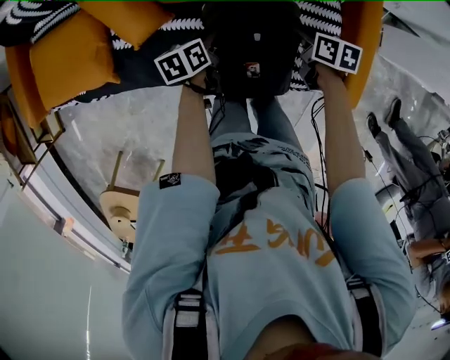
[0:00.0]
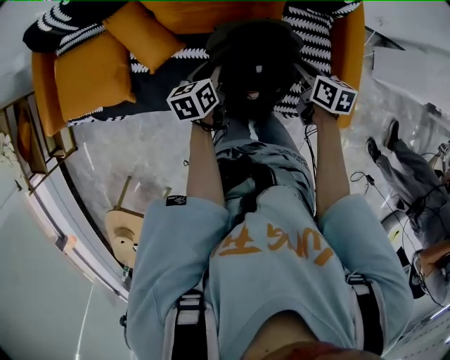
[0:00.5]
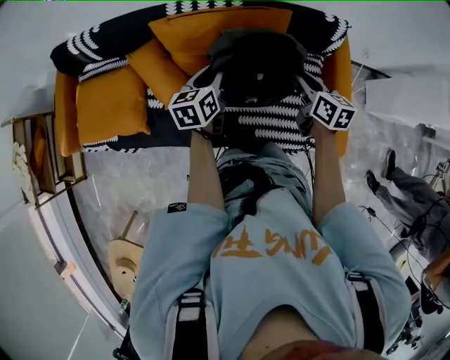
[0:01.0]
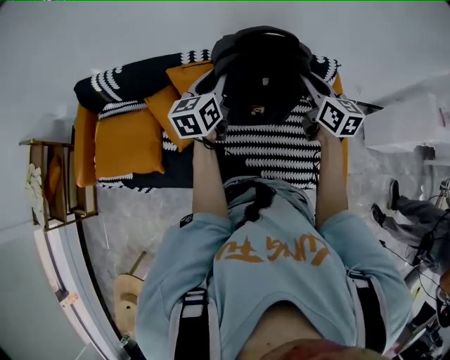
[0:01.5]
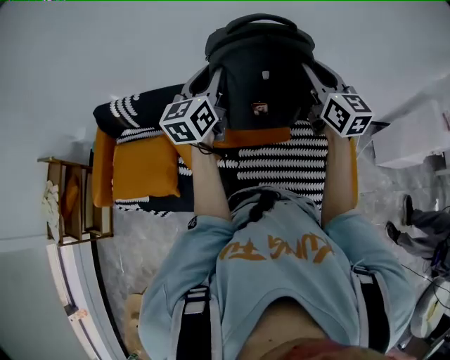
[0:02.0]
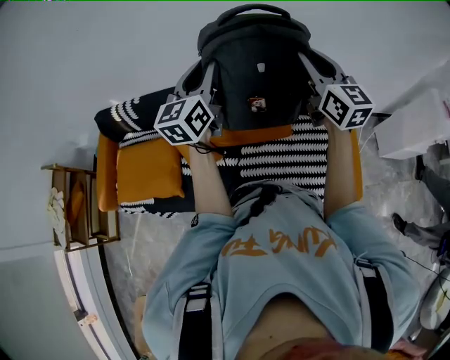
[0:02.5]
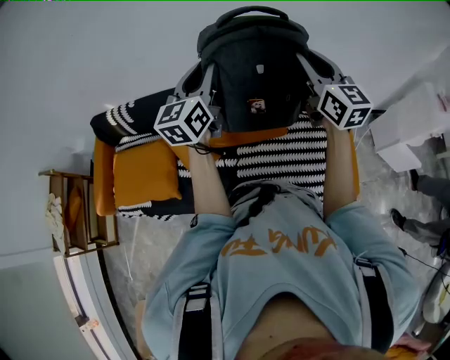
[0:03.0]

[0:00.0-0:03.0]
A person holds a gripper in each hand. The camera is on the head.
0:00.0 to 0:01.5: Both grippers move upward, some 35 cm. The left gripper points its fingers approximately 30 degrees further upward, while the right gripper tilts its fingers about 40 degrees upward.
0:01.5 to 0:03.0: The two grippers go roughly 15 cm upward. The right gripper changes its angle by some 20 degrees.

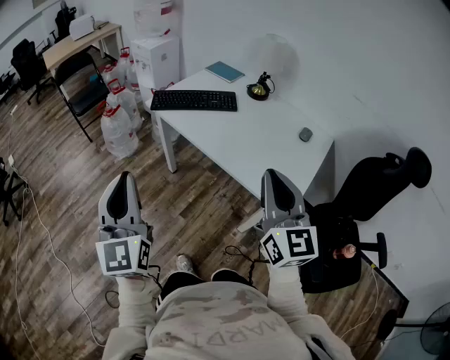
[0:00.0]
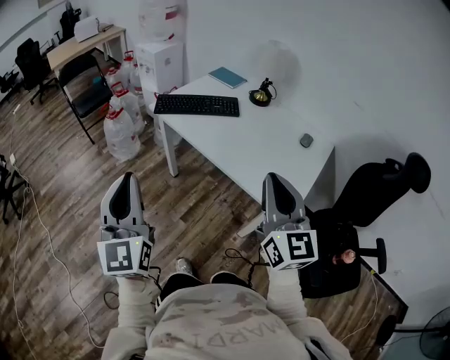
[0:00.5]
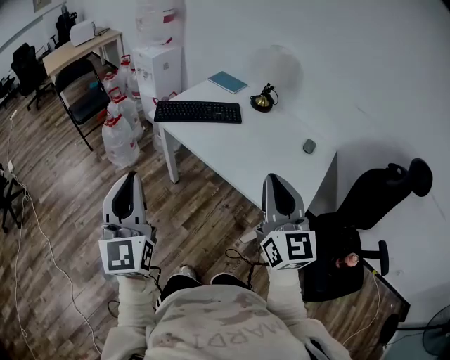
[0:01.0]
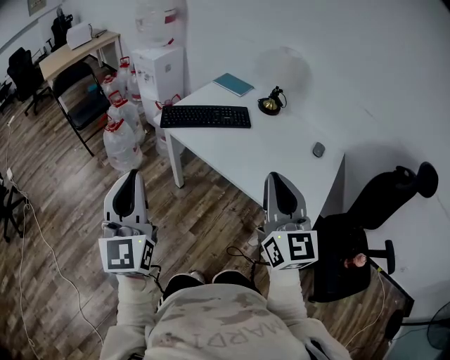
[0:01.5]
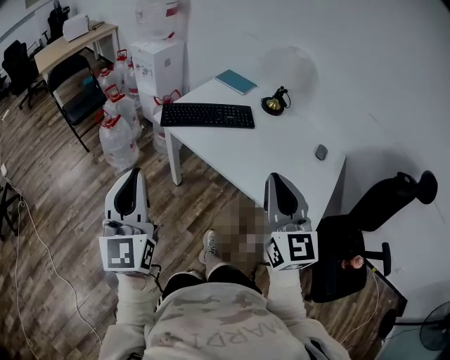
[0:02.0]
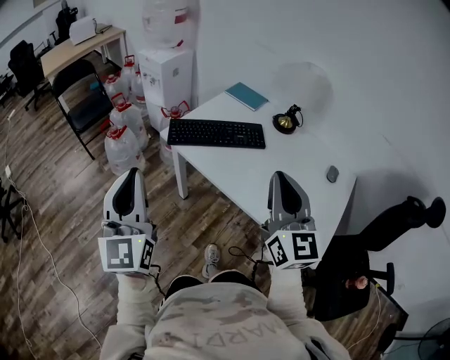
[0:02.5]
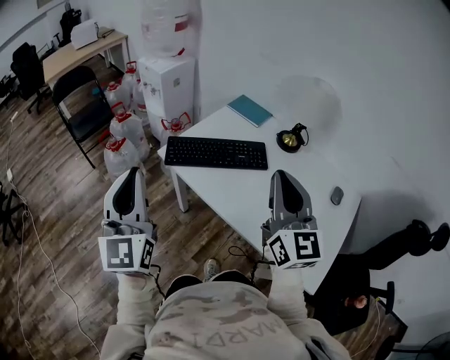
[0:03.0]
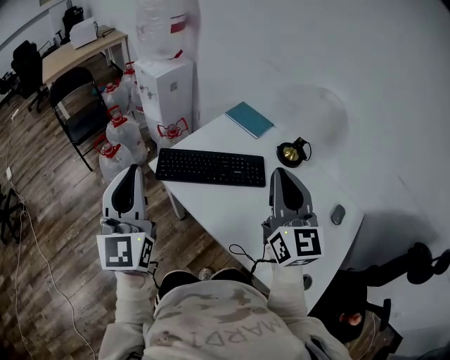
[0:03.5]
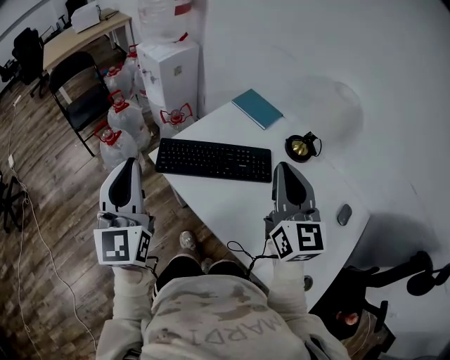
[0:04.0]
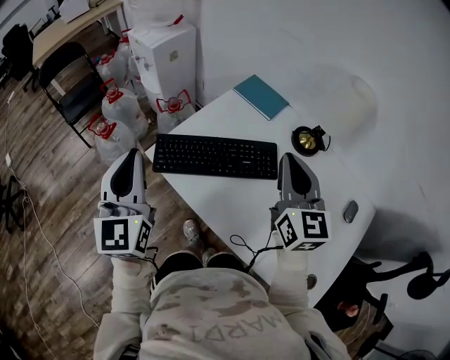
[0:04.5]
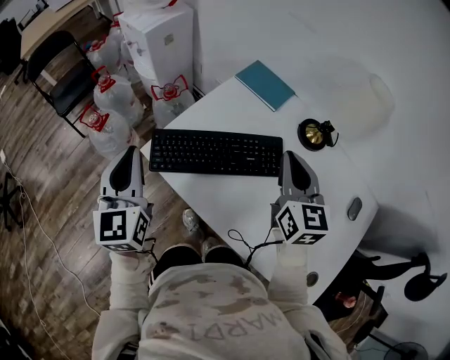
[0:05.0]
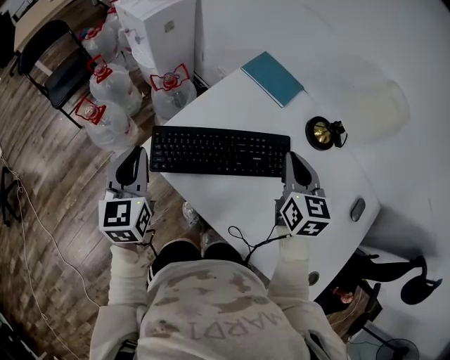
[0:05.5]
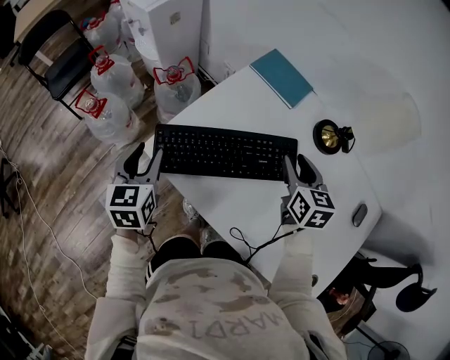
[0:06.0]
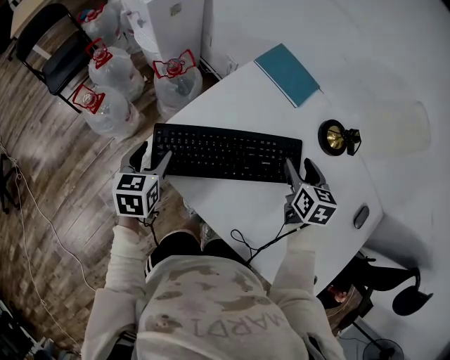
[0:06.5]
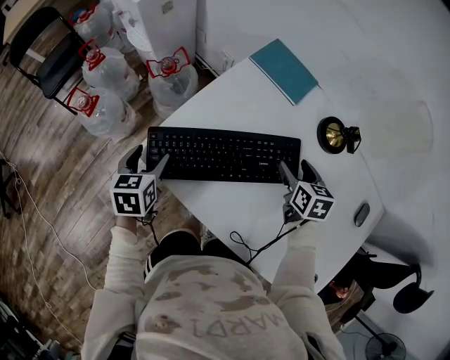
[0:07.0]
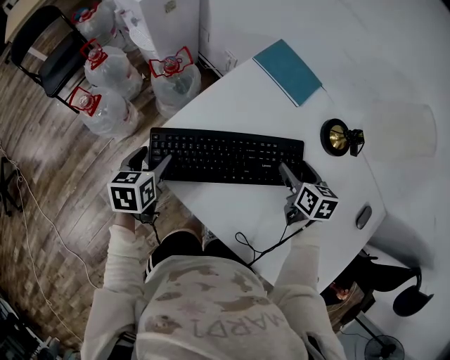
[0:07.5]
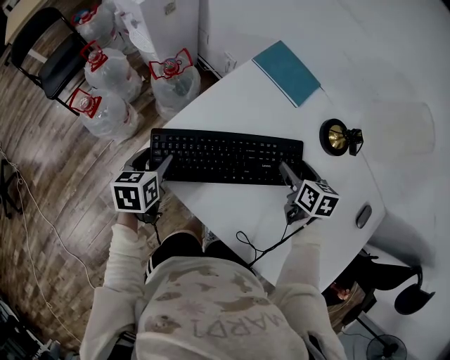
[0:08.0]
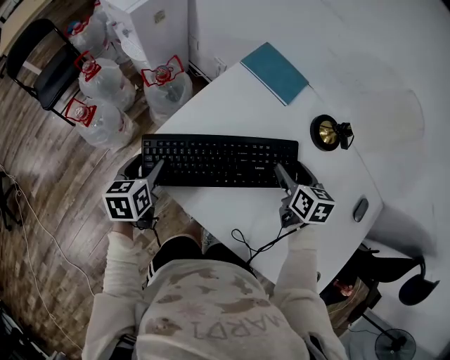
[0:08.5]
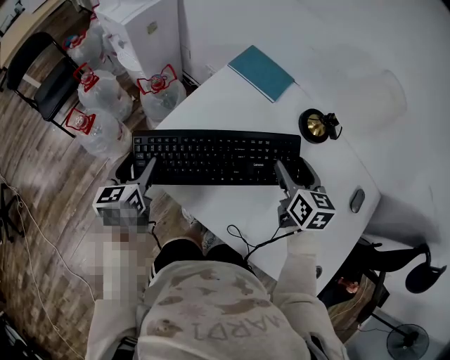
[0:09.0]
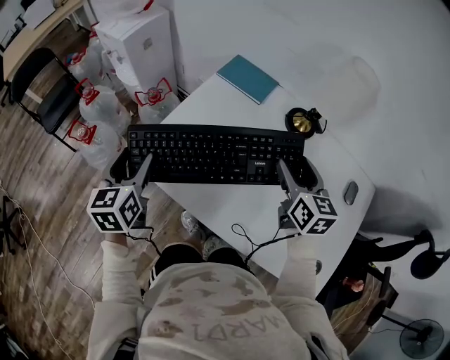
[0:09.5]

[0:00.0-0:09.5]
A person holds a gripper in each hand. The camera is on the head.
0:00.0 to 0:02.0: The two grippers go roughly 15 cm forward and to the left.
0:02.0 to 0:04.0: Both grippers travel together forward, some 35 cm.
0:04.0 to 0:05.5: The grippers both shift downward and forward by some 25 cm. The left gripper rotates about 30 degrees. Meanwhile the right gripper rotates roughly 30 degrees.
0:05.5 to 0:07.5: Both grippers travel together downward, roughly 15 cm. The right gripper swivels approximately 30 degrees, and opens its fingers, while the left gripper turns by some 30 degrees, and opens.
0:07.5 to 0:09.5: The left gripper is displaced upward by some 15 cm, and changes its angle by roughly 20 degrees. Meanwhile the right gripper travels upward and backward by about 20 cm, and swivels about 30 degrees.

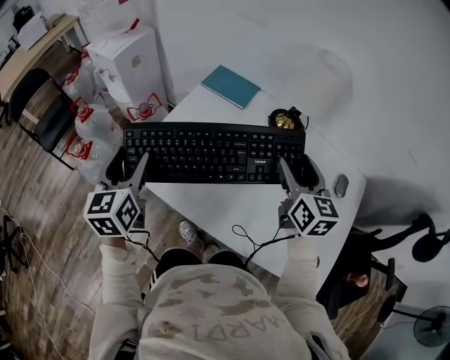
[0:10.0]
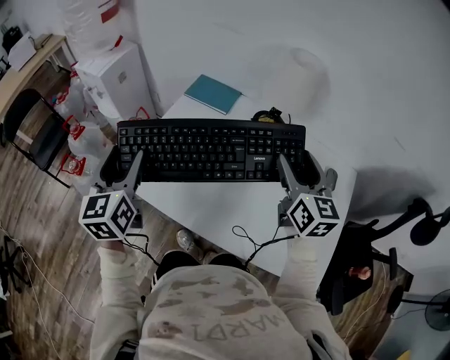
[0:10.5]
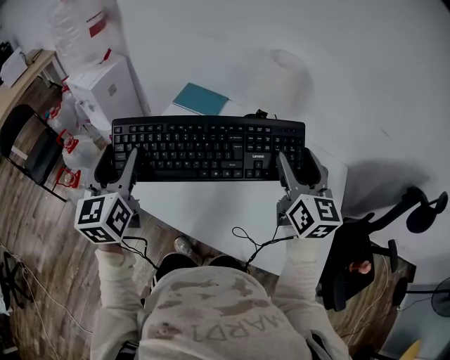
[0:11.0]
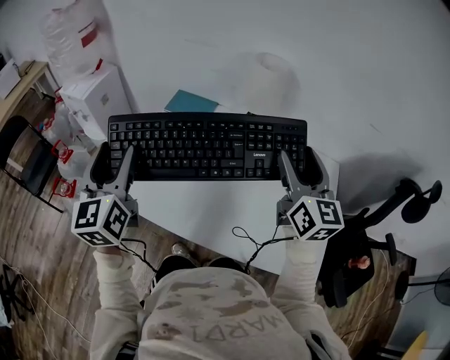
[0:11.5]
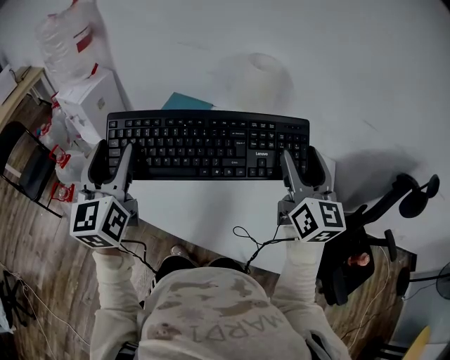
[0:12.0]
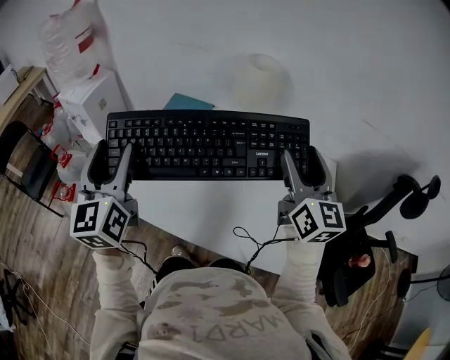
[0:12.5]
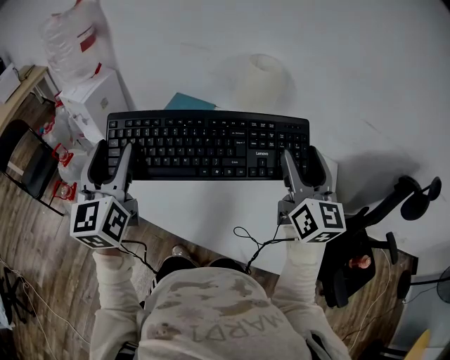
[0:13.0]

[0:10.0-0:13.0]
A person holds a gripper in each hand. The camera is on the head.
0:10.0 to 0:11.5: The left gripper goes roughly 15 cm upward and to the right, while the right gripper goes roughly 15 cm upward, to the right and backward, and turns by about 20 degrees.
0:11.5 to 0:13.0: The grippers stay close to where they were, moving slightly.

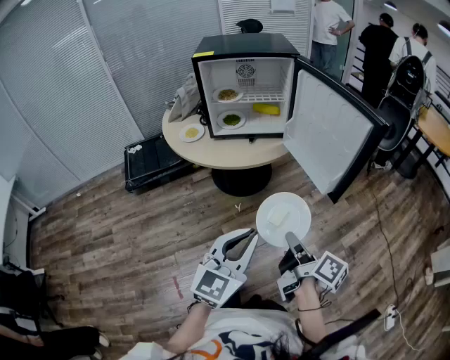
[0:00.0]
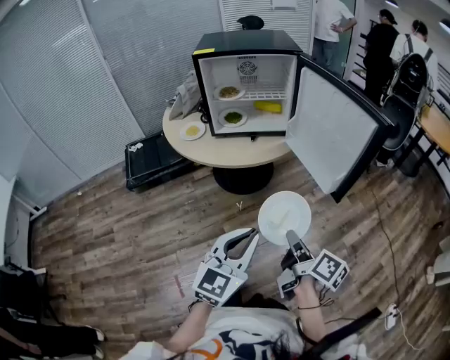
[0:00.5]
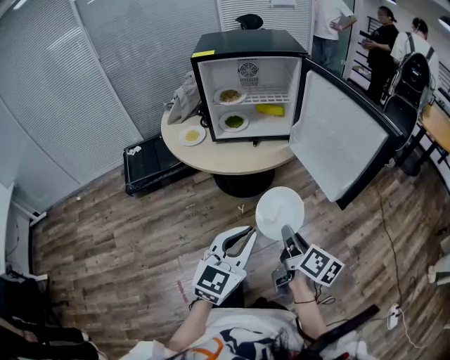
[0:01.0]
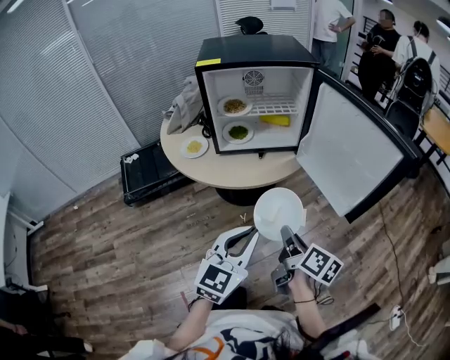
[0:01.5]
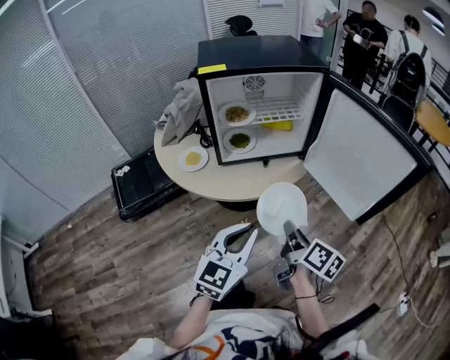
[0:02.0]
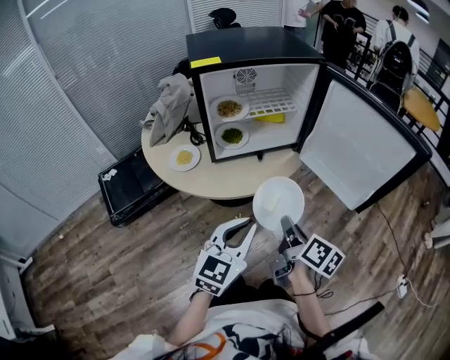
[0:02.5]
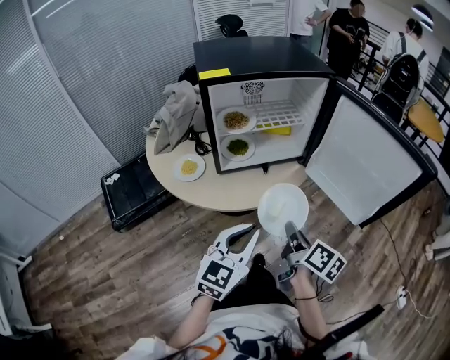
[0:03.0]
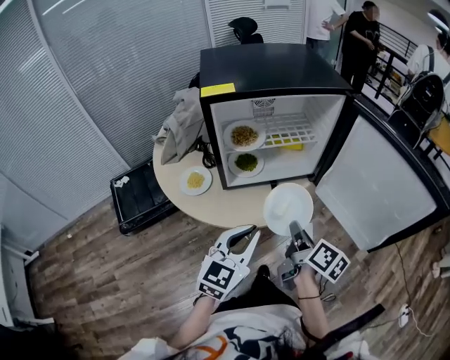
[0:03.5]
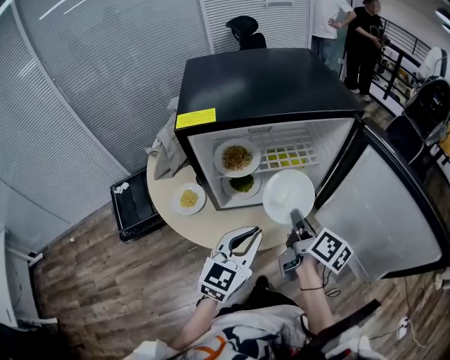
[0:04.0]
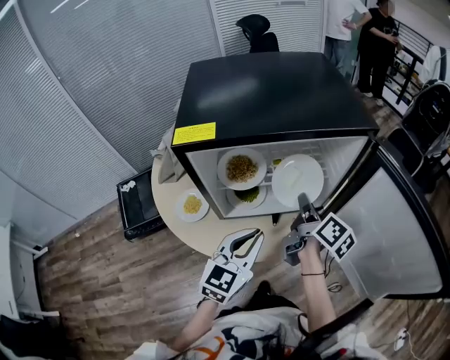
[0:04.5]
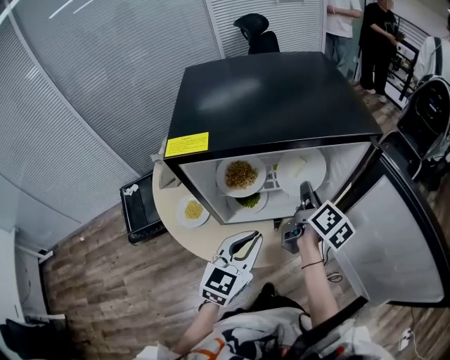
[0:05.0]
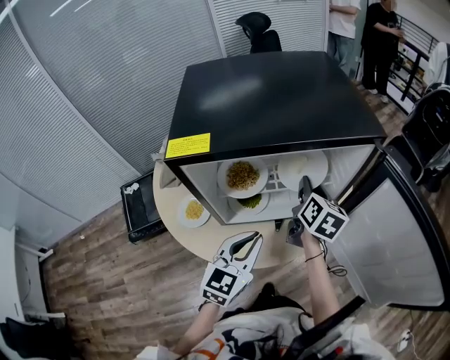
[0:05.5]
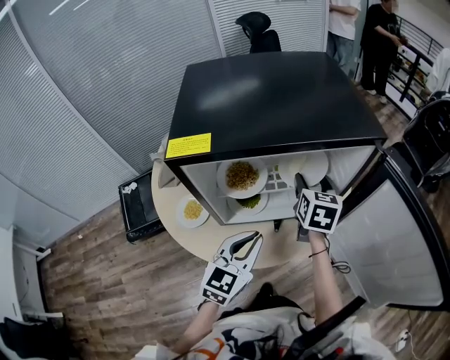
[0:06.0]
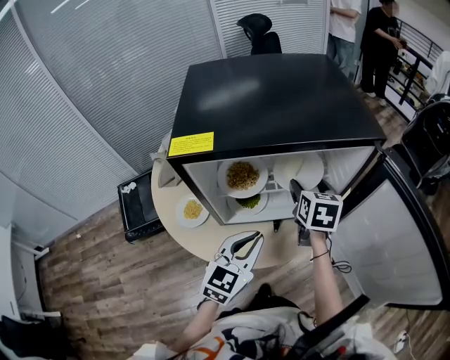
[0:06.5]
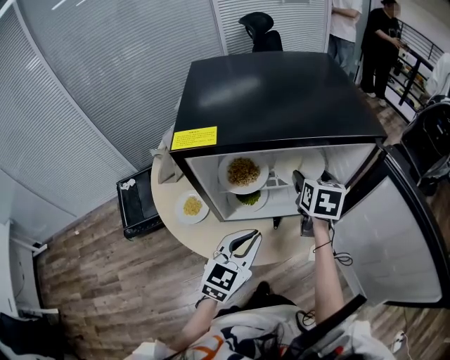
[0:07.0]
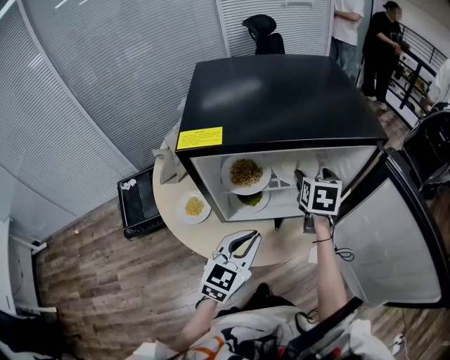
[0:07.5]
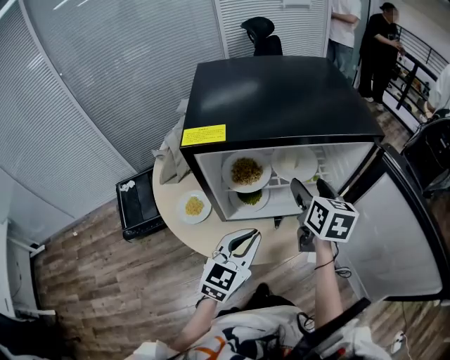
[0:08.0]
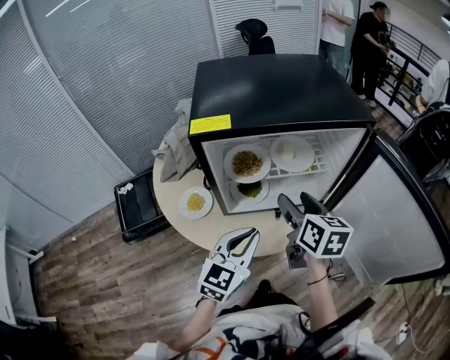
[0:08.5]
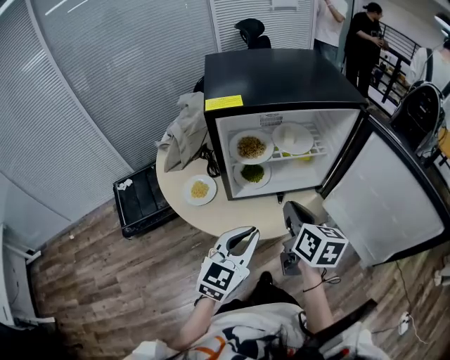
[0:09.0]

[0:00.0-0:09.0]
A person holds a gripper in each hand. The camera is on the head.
0:00.0 to 0:02.0: Both grippers travel together forward and to the left, roughly 25 cm.
0:02.0 to 0:04.5: The grippers both shift forward by approximately 30 cm.
0:04.5 to 0:07.0: The right gripper heads forward, covering some 10 cm, rotates around the line of its fingers by some 50 degrees, counterclockwise from behind, and opens its fingers.
0:07.0 to 0:09.0: The left gripper moves backward, some 10 cm, while the right gripper is displaced backward by roughly 25 cm, rotates some 20 degrees, and closes its fingers.

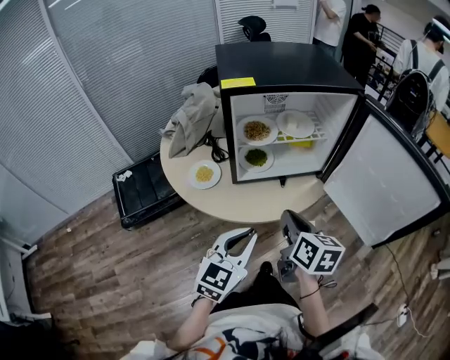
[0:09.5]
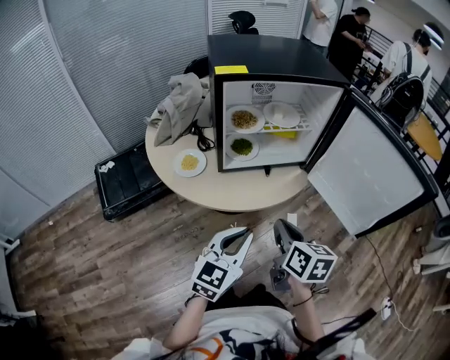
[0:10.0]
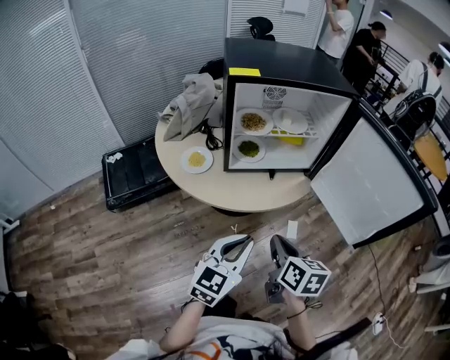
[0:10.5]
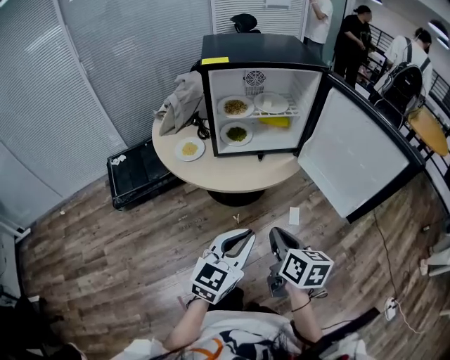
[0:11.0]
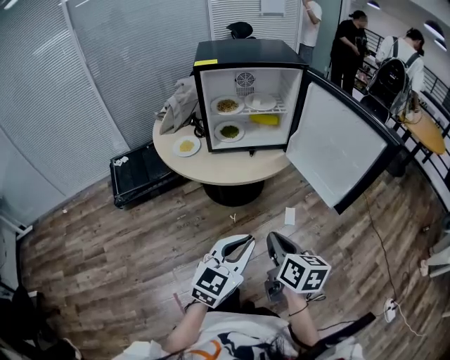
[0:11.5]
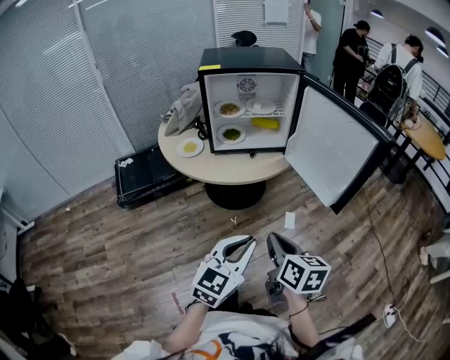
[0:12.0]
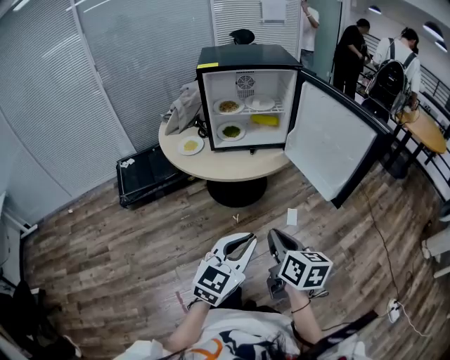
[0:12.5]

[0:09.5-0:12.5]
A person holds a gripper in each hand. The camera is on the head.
0:09.5 to 0:11.0: The two grippers go roughly 15 cm backward and to the right.
0:11.0 to 0:12.5: The two grippers go approximately 15 cm backward and to the right.
